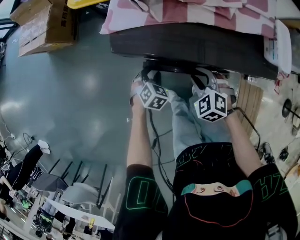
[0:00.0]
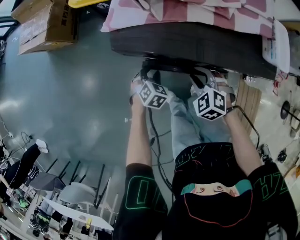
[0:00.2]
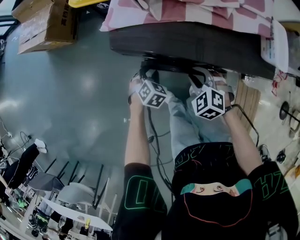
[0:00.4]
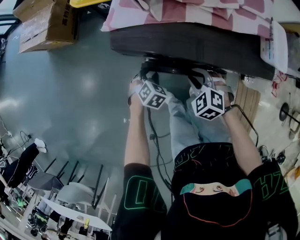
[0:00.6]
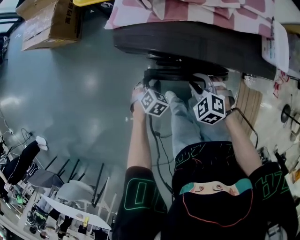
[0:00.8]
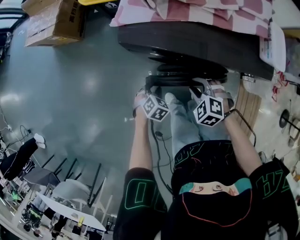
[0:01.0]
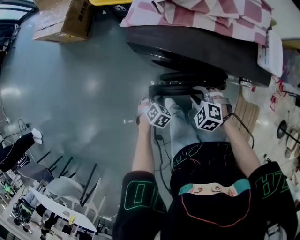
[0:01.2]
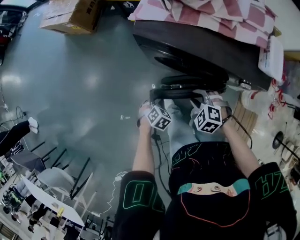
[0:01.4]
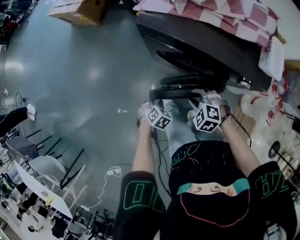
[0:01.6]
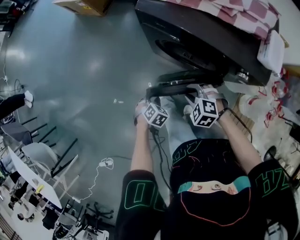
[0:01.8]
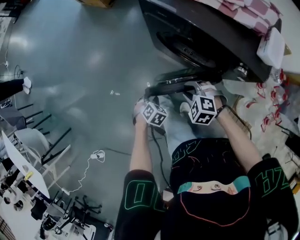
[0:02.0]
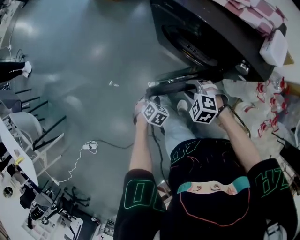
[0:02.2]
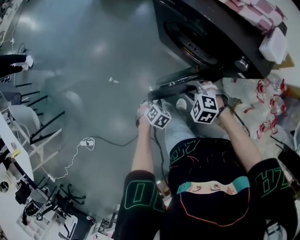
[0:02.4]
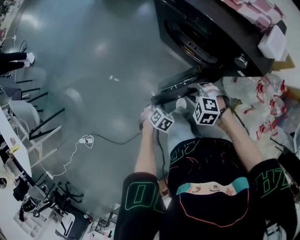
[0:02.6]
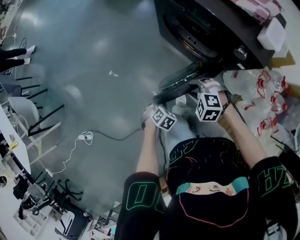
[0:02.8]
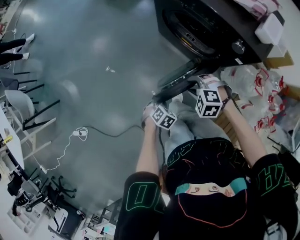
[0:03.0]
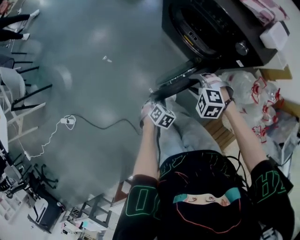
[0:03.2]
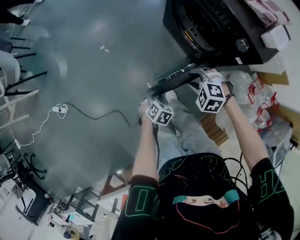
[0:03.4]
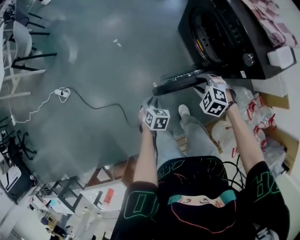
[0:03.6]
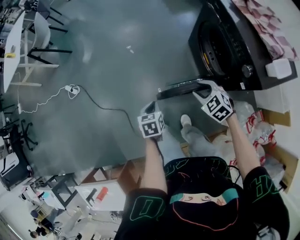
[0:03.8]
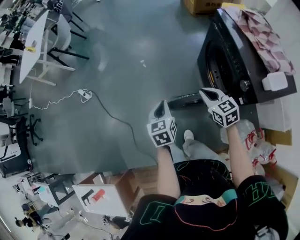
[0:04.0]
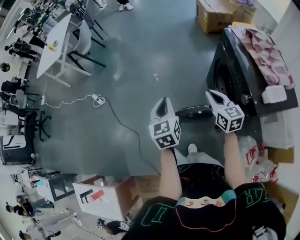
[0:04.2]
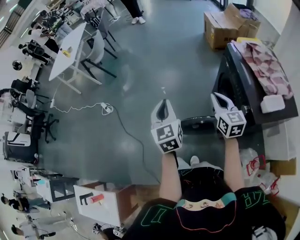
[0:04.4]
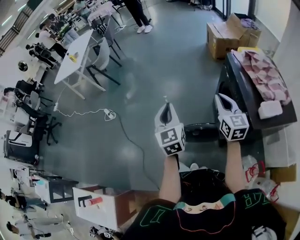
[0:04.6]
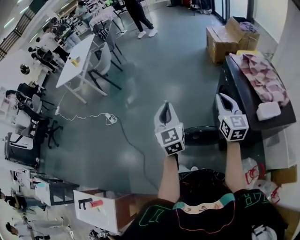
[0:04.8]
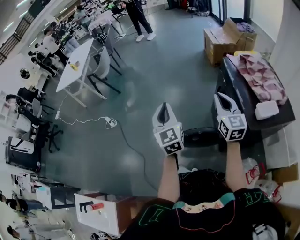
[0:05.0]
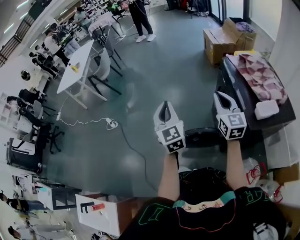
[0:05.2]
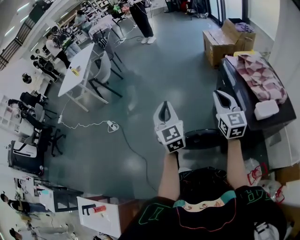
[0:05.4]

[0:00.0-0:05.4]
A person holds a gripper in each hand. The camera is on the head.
0.0 to 1.4 s: The left gripper shifts some 15 cm backward, while the right gripper goes approximately 10 cm backward, and rotates some 20 degrees.
1.4 to 2.8 s: The right gripper ends up about 20 cm from where it was, and rotates approximately 40 degrees. Meanwhile the left gripper changes place by approximately 30 cm, and turns by approximately 30 degrees.
2.8 to 4.0 s: The right gripper moves upward, roughly 15 cm, points its fingers approximately 30 degrees further upward, and closes, while the left gripper goes some 25 cm upward, and rolls counterclockwise, seen from behind, by roughly 80 degrees.
4.0 to 5.4 s: The two grippers go roughly 25 cm upward. The left gripper tilts its fingers roughly 30 degrees upward. Meanwhile the right gripper points its fingers some 30 degrees further upward.

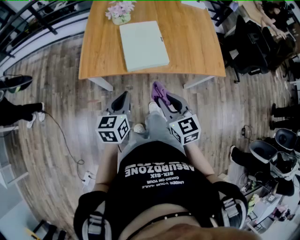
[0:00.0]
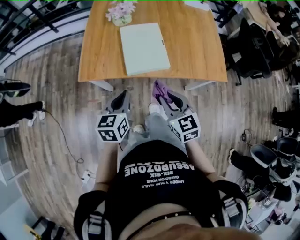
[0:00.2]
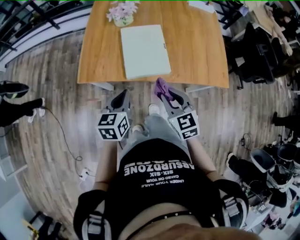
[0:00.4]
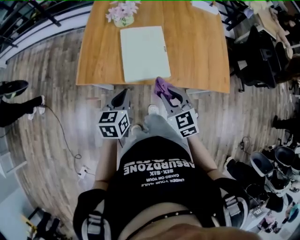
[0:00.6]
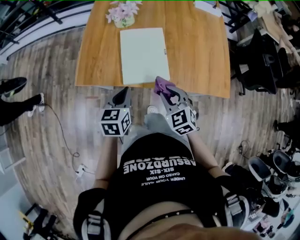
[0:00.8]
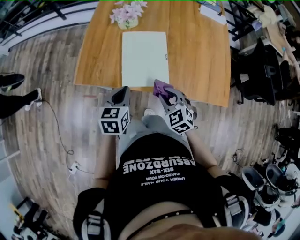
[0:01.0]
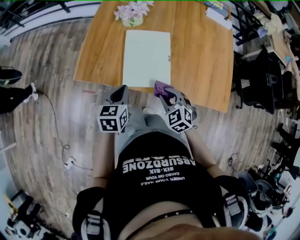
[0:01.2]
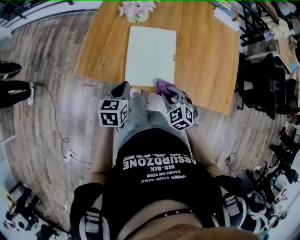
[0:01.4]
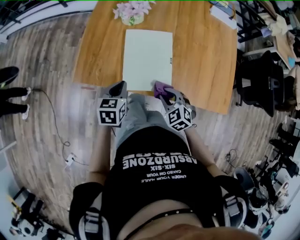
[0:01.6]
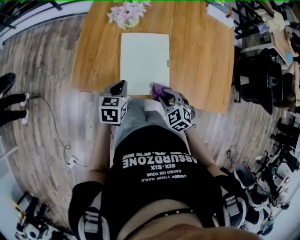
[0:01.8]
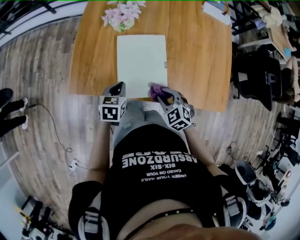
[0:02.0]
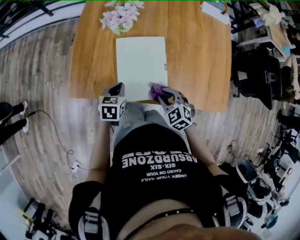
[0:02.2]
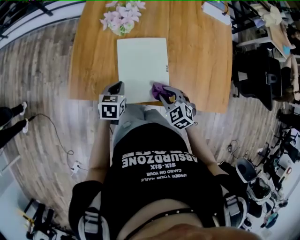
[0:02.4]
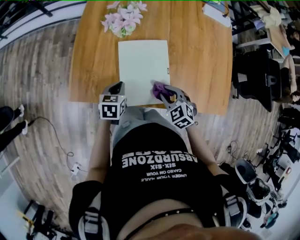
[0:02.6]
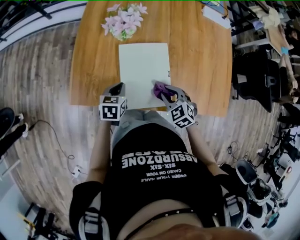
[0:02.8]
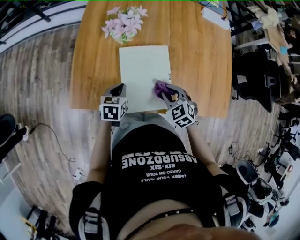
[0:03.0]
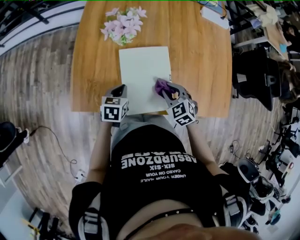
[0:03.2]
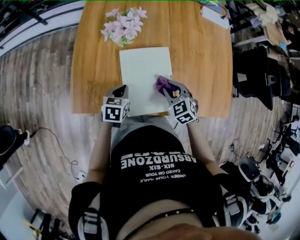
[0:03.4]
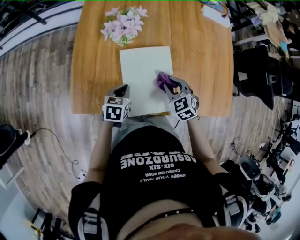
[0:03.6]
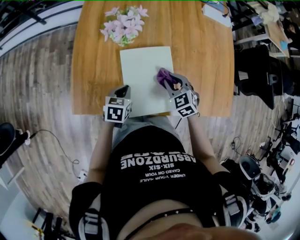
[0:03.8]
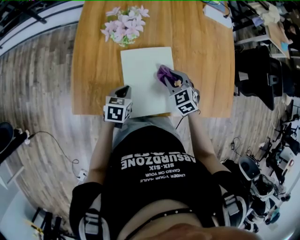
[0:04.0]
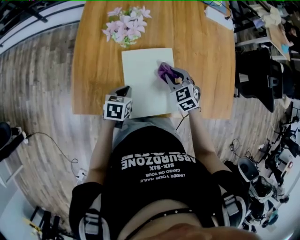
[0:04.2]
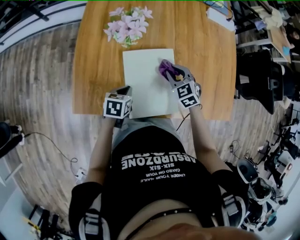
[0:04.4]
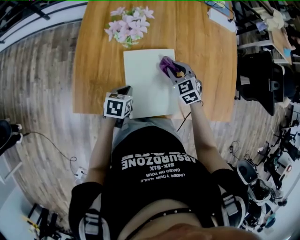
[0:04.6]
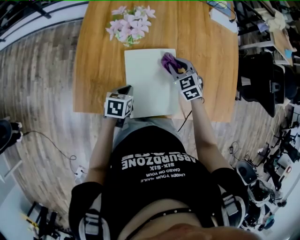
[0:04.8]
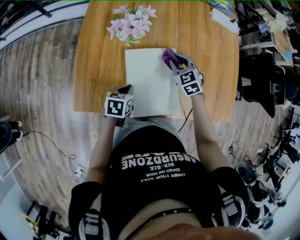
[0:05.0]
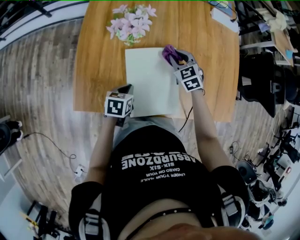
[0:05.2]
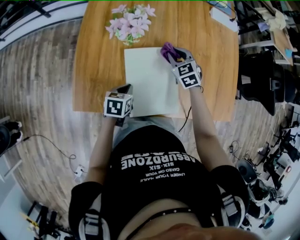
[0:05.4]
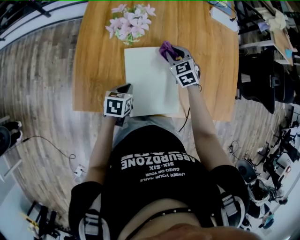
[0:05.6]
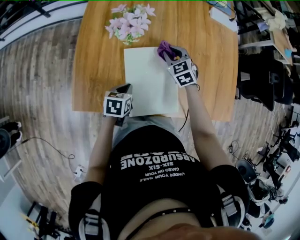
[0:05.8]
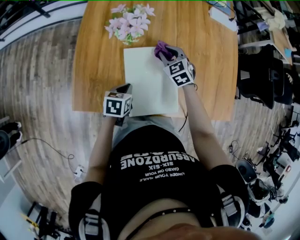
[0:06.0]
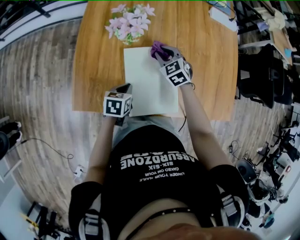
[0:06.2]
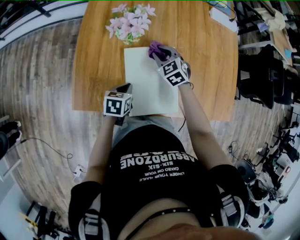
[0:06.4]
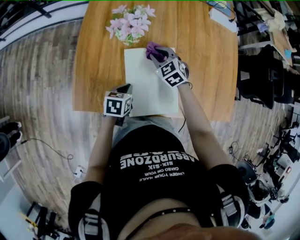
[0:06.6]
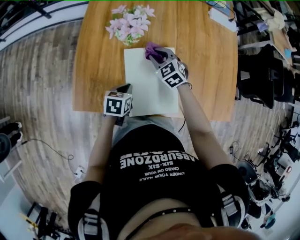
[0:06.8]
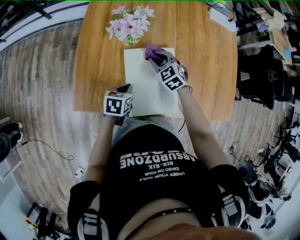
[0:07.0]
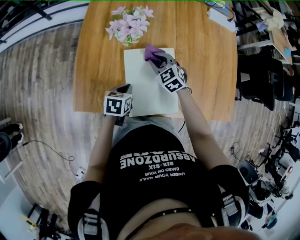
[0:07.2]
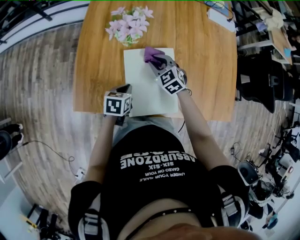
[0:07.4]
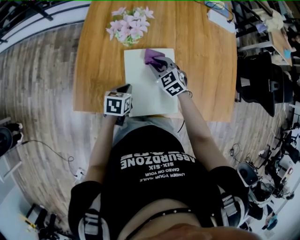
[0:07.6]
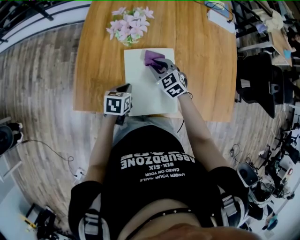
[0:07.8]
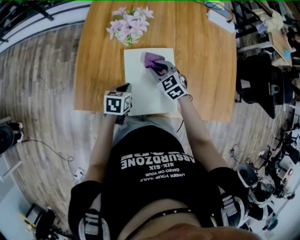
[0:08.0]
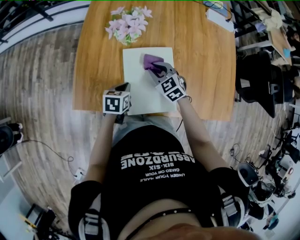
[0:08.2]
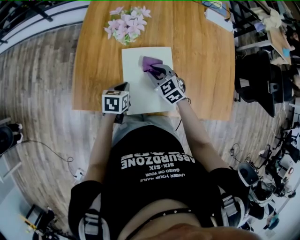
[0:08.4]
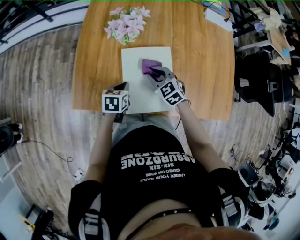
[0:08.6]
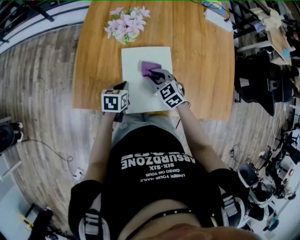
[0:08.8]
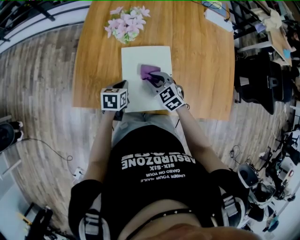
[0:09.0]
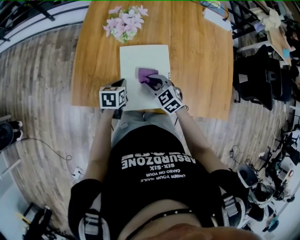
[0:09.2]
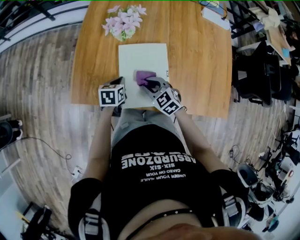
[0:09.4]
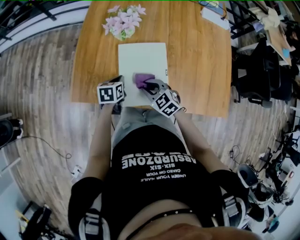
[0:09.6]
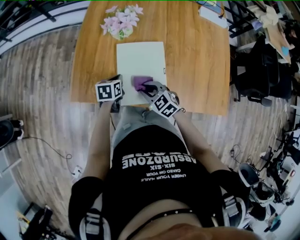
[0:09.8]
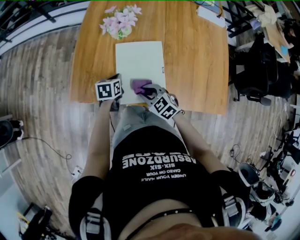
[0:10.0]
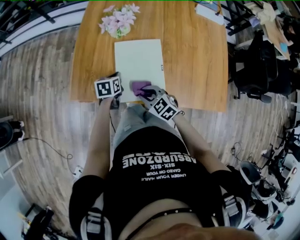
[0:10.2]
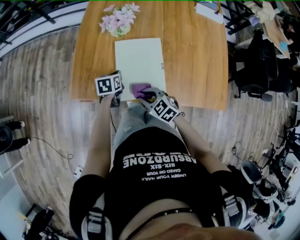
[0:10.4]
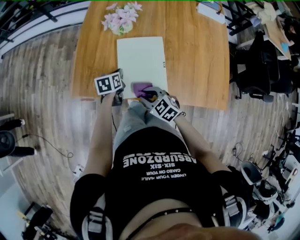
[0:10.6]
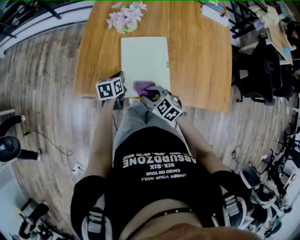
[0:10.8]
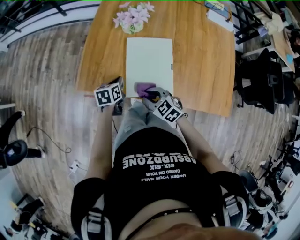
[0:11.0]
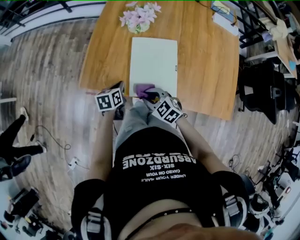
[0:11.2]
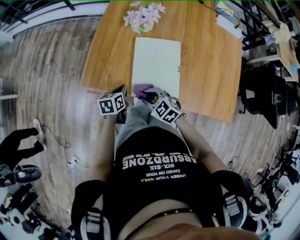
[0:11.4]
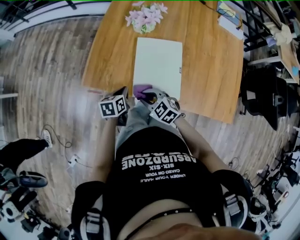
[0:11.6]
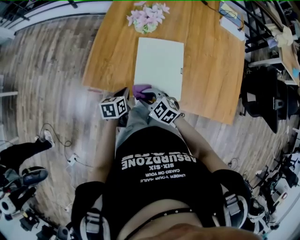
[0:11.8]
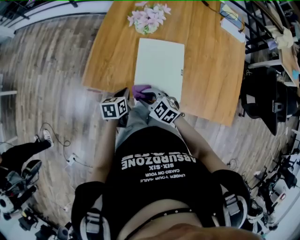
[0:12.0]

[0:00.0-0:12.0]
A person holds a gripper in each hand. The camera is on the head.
0.0 to 1.6 s: Both grippers move forward and downward, approximately 25 cm. The right gripper turns by roughly 40 degrees.
1.6 to 3.0 s: The right gripper is displaced forward by about 10 cm. Meanwhile the left gripper shifts approximately 15 cm forward and downward.
3.0 to 4.4 s: The right gripper heads forward, covering roughly 15 cm.
4.4 to 6.0 s: The right gripper moves forward, approximately 5 cm.
6.0 to 7.6 s: The right gripper shifts approximately 5 cm backward.
7.6 to 9.0 s: The right gripper goes approximately 10 cm backward.
9.0 to 10.4 s: The right gripper travels backward by approximately 15 cm.
10.4 to 12.0 s: The left gripper shifts approximately 10 cm backward and to the left; the right gripper goes roughly 10 cm to the left.

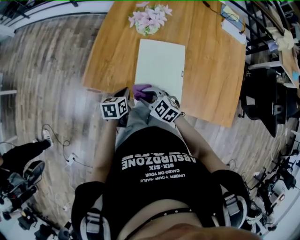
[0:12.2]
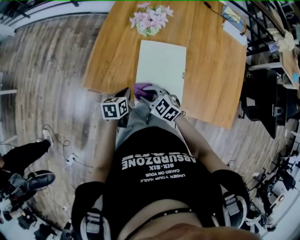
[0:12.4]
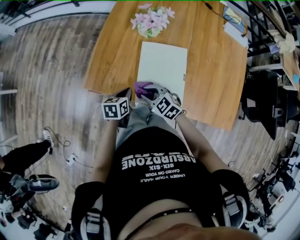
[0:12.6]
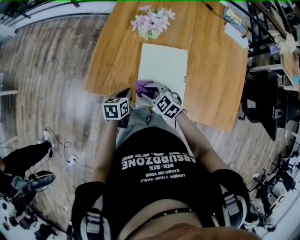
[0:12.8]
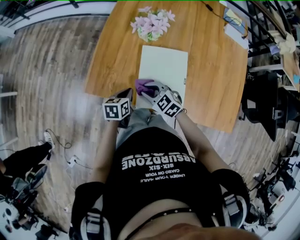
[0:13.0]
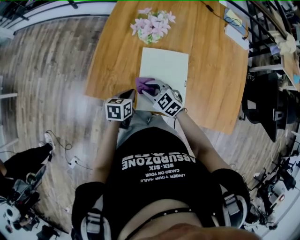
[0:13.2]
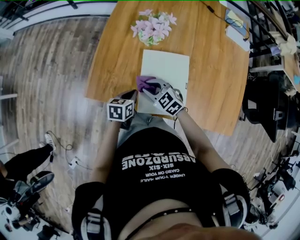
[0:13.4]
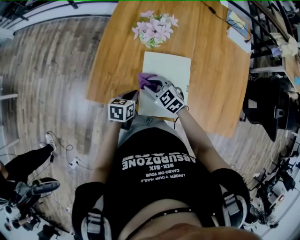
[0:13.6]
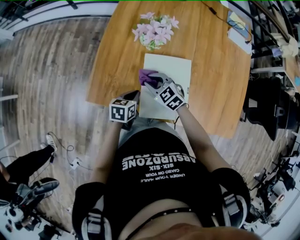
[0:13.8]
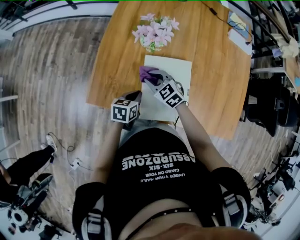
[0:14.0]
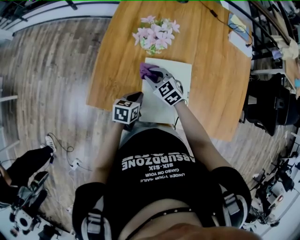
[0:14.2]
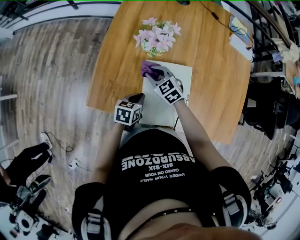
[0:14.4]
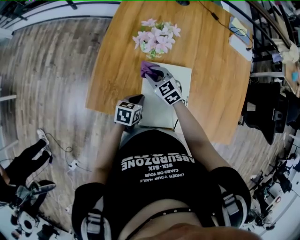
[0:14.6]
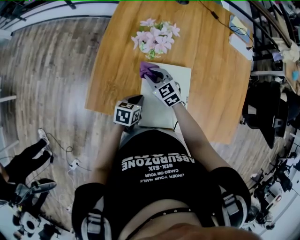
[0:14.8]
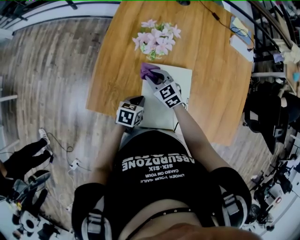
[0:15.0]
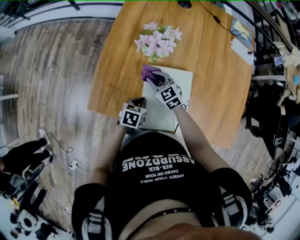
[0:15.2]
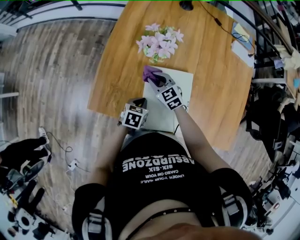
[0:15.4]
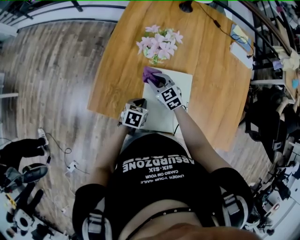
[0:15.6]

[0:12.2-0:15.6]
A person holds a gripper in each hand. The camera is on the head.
12.2 to 13.8 s: The left gripper moves forward, roughly 5 cm, while the right gripper shifts some 15 cm forward.
13.8 to 15.6 s: The right gripper moves forward, roughly 10 cm.

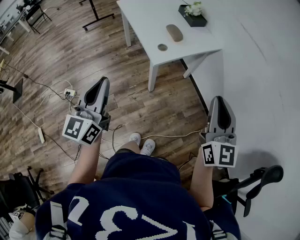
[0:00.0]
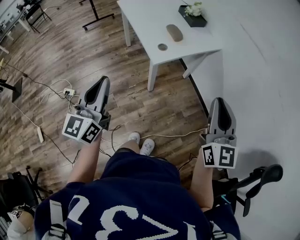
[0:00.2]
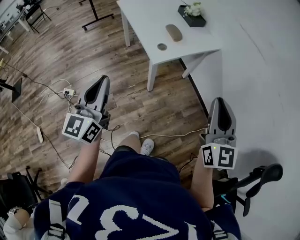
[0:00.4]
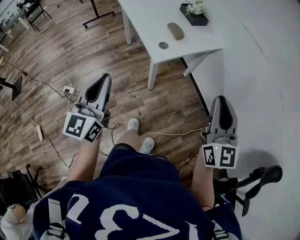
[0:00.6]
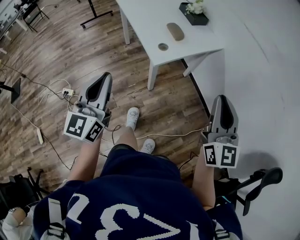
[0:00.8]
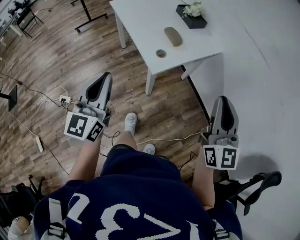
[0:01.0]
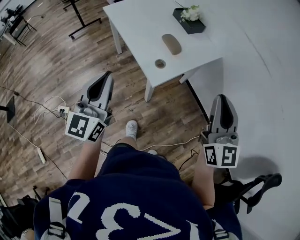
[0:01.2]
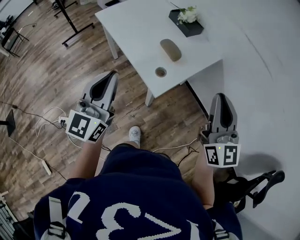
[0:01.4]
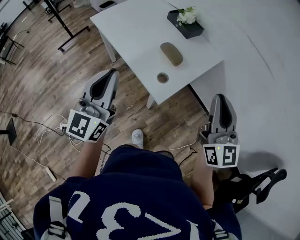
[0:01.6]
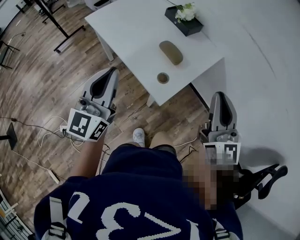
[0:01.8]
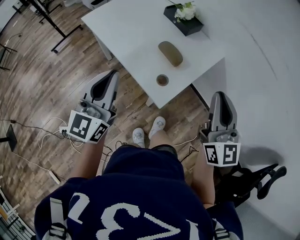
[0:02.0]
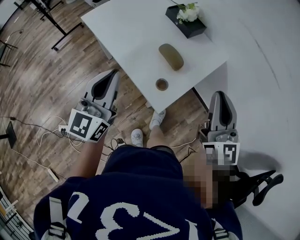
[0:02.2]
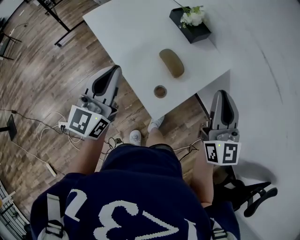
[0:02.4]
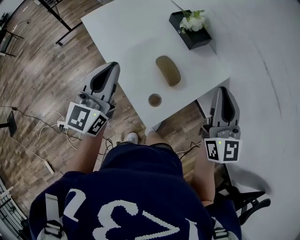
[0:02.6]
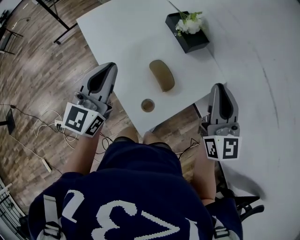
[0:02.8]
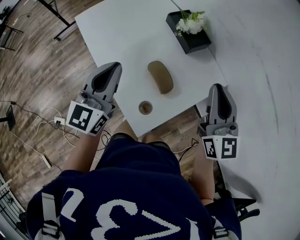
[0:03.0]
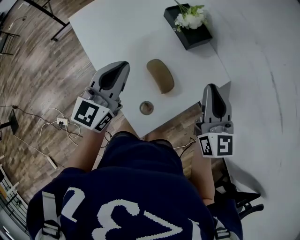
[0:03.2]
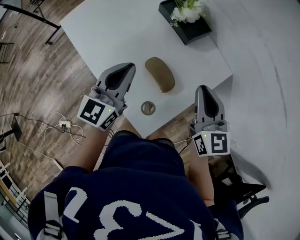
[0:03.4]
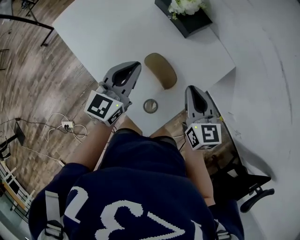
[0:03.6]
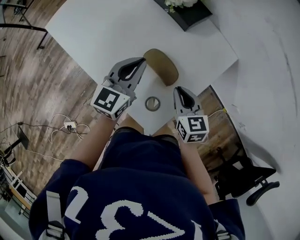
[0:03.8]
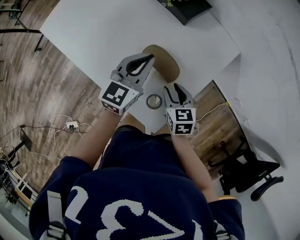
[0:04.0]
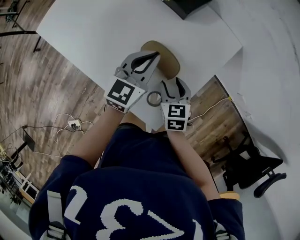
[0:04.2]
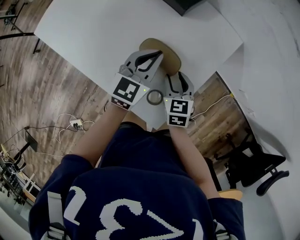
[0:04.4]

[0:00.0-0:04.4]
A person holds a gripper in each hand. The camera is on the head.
0.0 to 1.4 s: The left gripper heads forward, covering about 25 cm; the right gripper moves forward and to the left, about 20 cm.
1.4 to 3.0 s: The two grippers go roughly 30 cm forward.
3.0 to 4.4 s: The left gripper moves downward, to the right and forward, some 25 cm, and swivels approximately 40 degrees; the right gripper shifts about 30 cm downward, tips its fingers downward by some 40 degrees, and opens up.
